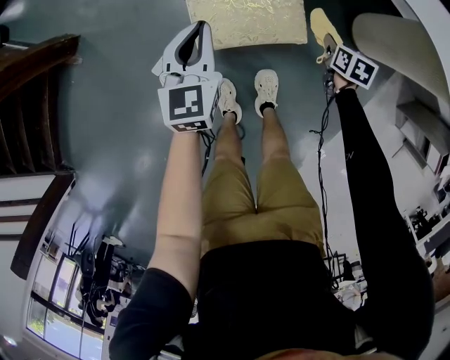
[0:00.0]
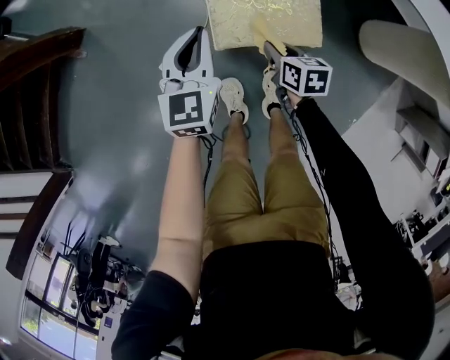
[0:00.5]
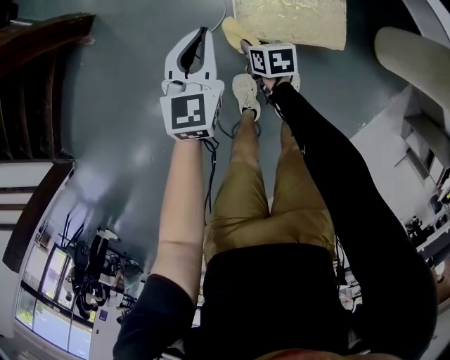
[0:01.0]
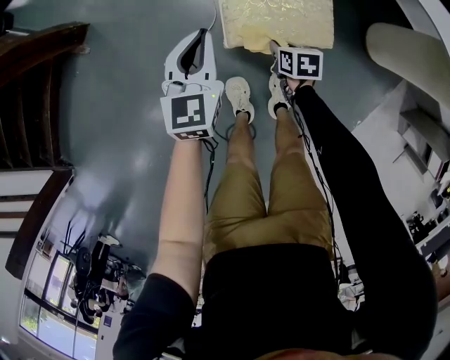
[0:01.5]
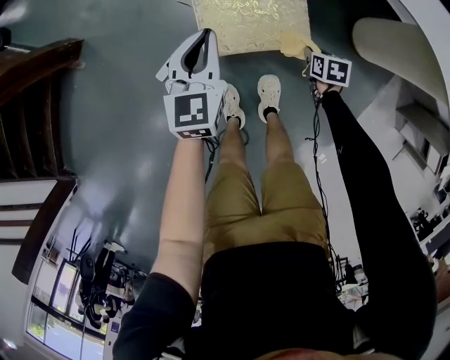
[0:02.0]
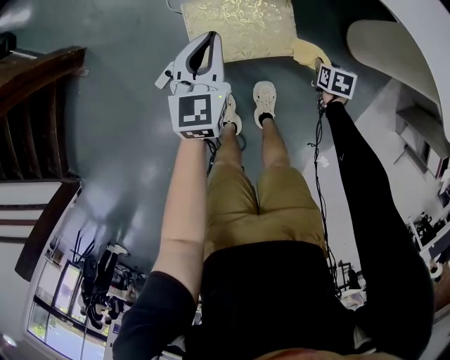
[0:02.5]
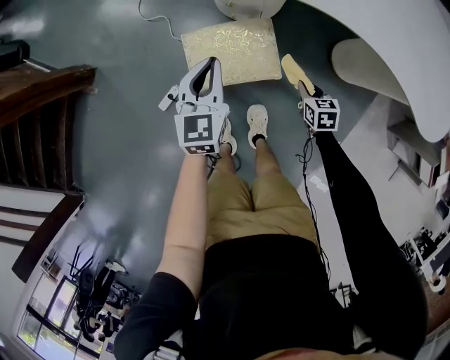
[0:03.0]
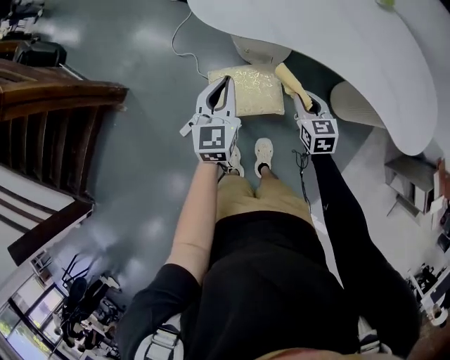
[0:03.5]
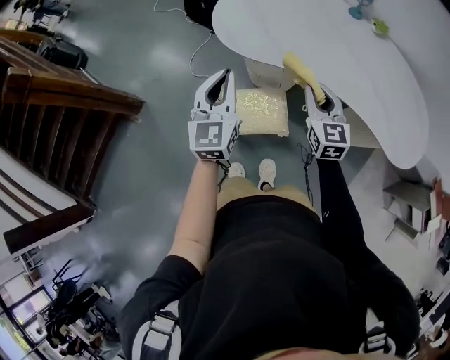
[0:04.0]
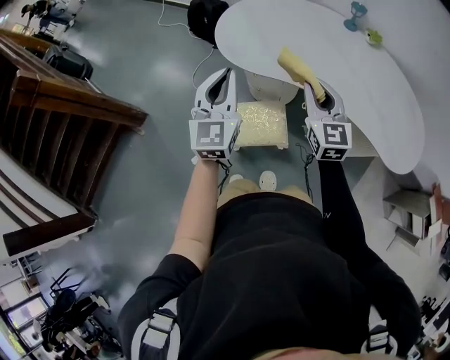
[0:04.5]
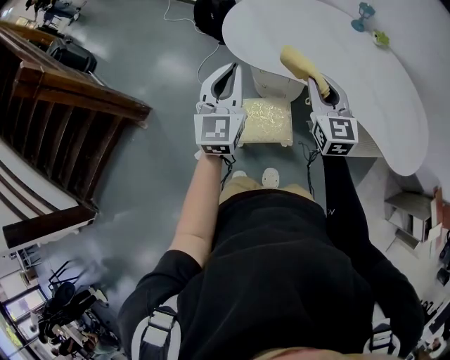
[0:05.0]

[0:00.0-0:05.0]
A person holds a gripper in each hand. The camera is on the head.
0:02.5 to 0:05.0: The right gripper goes approximately 60 cm upward, and angles its fingers upward, by some 60 degrees, while the left gripper moves upward, roughly 40 cm, and turns by approximately 30 degrees.

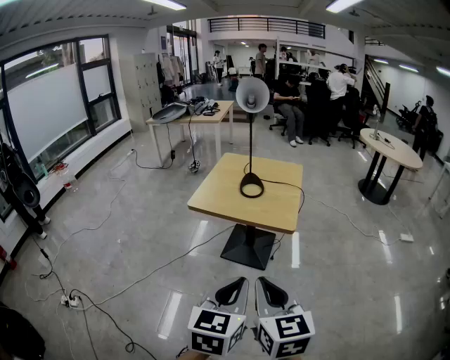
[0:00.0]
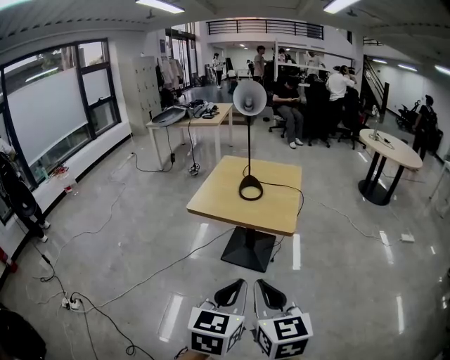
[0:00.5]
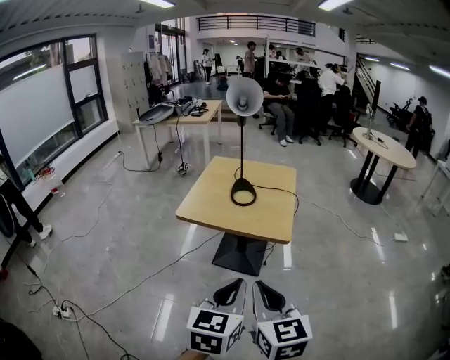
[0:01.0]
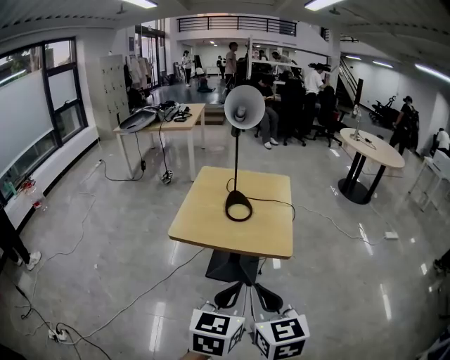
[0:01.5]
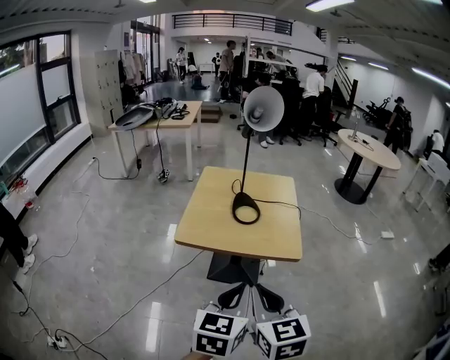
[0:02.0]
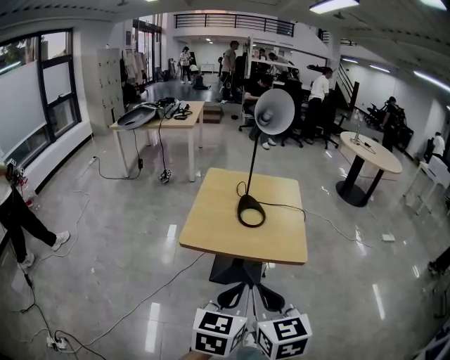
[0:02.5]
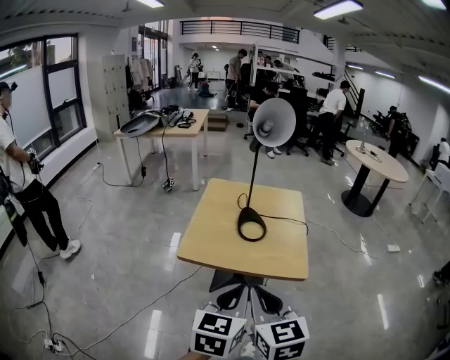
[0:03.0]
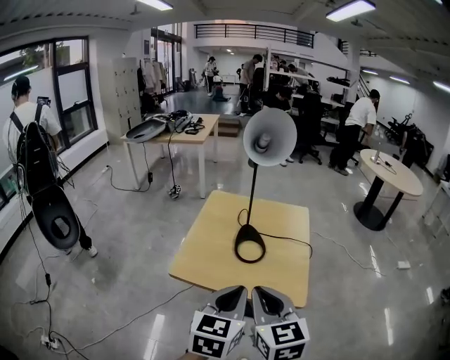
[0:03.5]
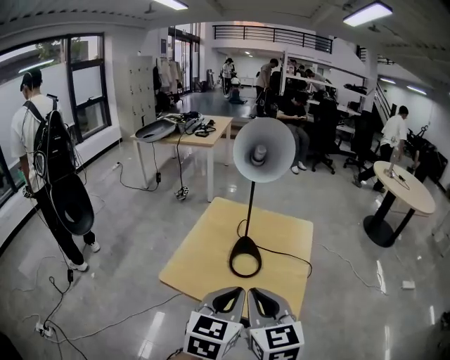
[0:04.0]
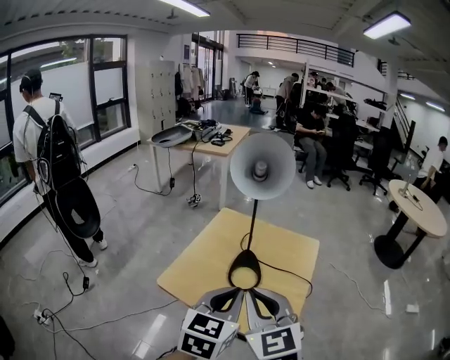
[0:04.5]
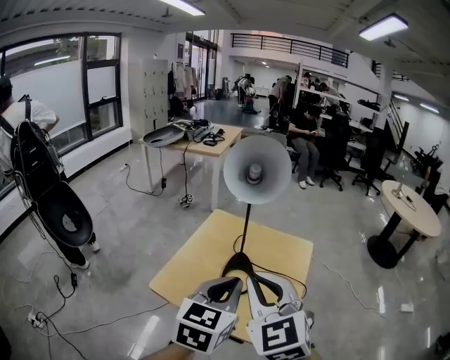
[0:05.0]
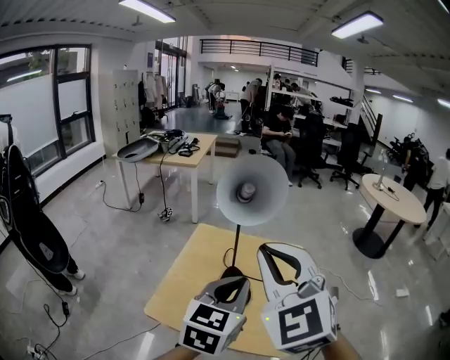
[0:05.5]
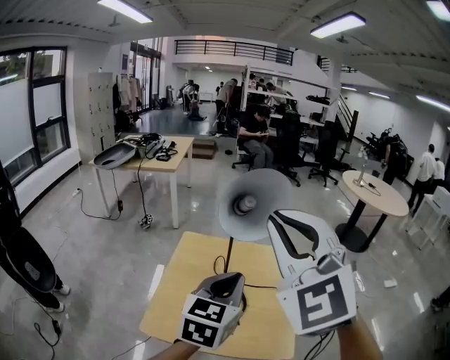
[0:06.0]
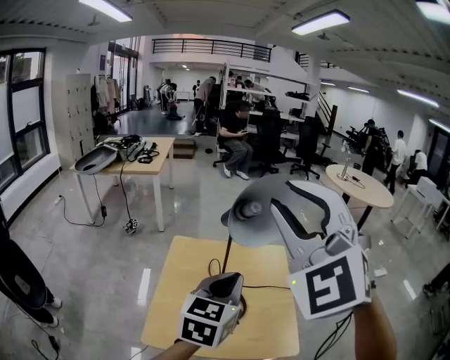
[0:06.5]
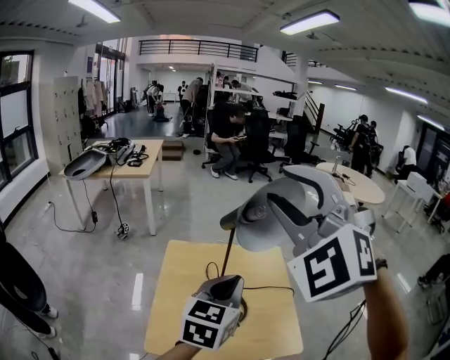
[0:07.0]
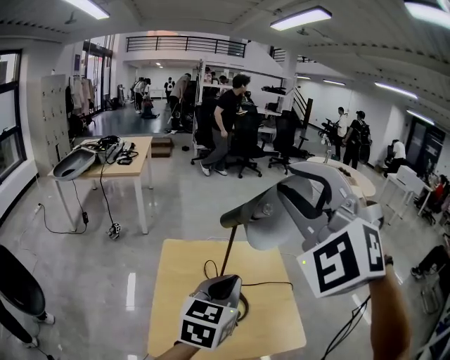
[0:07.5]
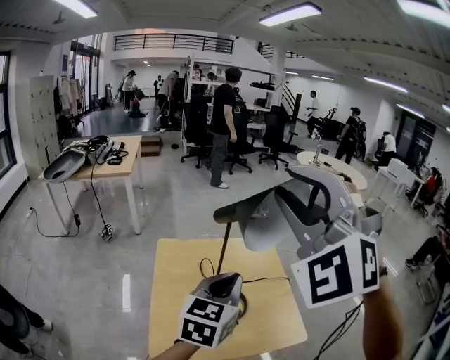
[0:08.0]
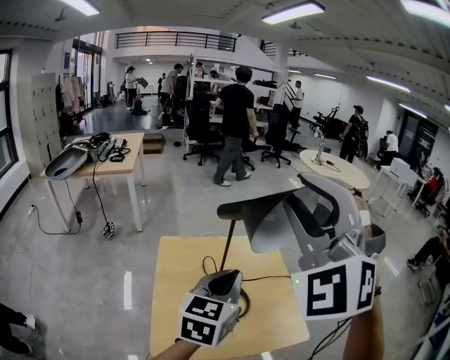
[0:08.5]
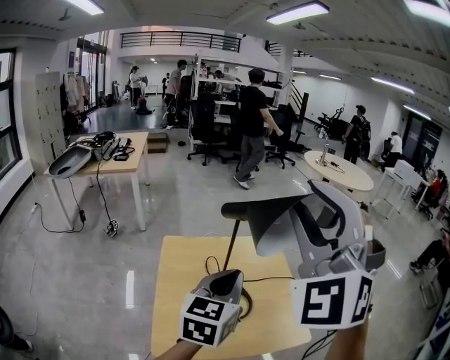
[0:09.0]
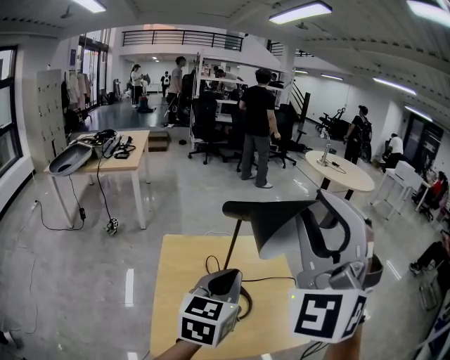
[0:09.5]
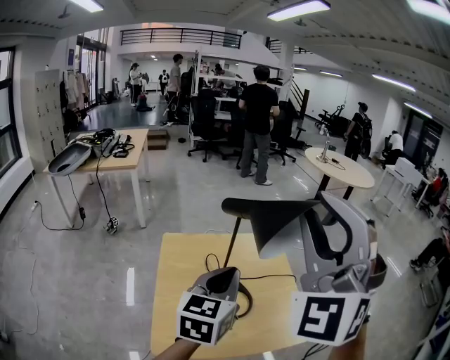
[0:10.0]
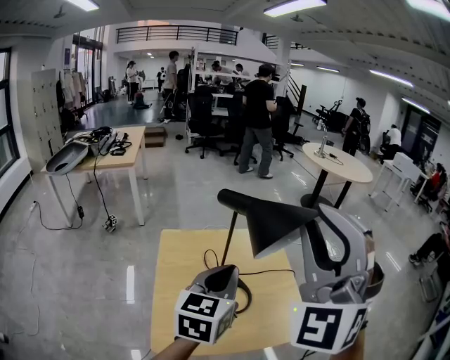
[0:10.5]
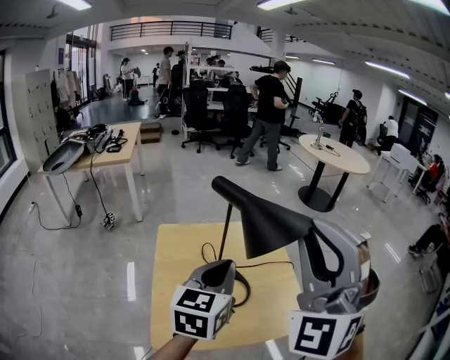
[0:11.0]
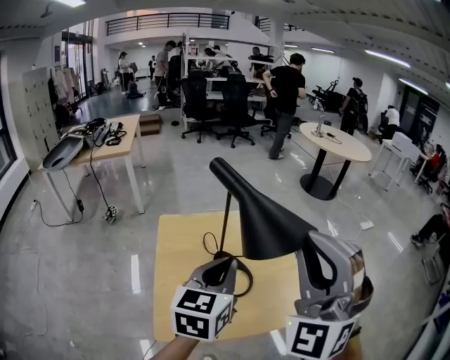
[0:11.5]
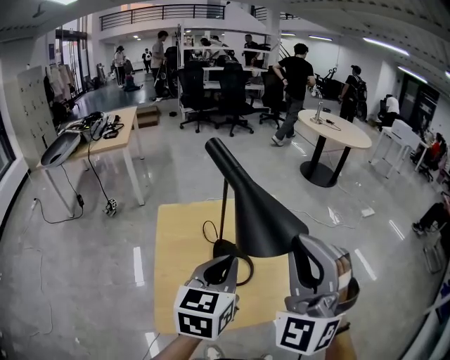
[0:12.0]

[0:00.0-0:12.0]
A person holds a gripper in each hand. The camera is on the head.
0:00.0 to 0:02.0: The two grippers travel together, forward and to the left, some 80 cm.
0:02.0 to 0:04.0: The two grippers travel together, forward and to the right, roughly 70 cm.
0:04.0 to 0:06.0: Both grippers are carried forward, some 40 cm. The right gripper is displaced upward by about 30 cm, and rotates around the line of its fingers by roughly 40 degrees, counterclockwise from behind.
0:06.0 to 0:08.0: Both grippers move to the left, approximately 35 cm. The right gripper changes its angle by approximately 40 degrees, and opens up.
0:08.0 to 0:10.0: The right gripper is displaced to the right by roughly 10 cm.
0:10.0 to 0:12.0: The left gripper shifts about 15 cm to the right and downward. The right gripper shifts roughly 25 cm downward and to the right.

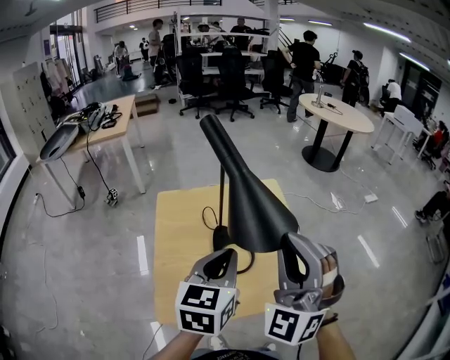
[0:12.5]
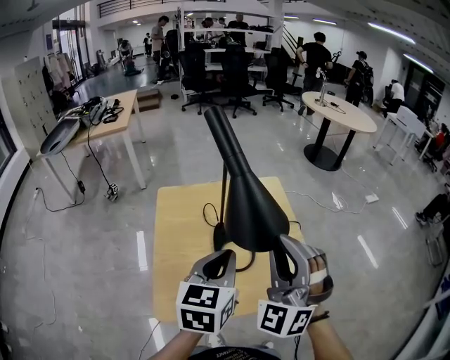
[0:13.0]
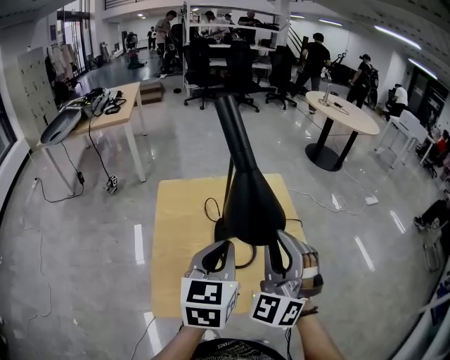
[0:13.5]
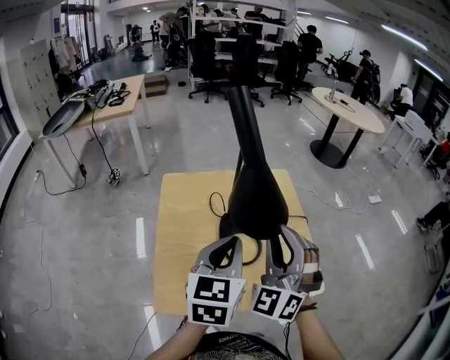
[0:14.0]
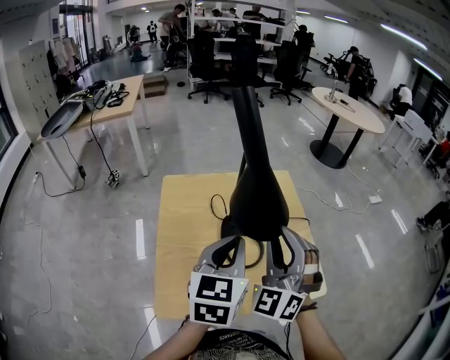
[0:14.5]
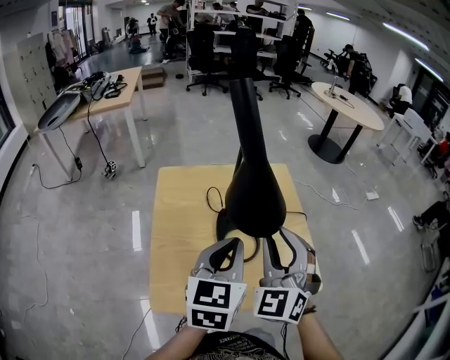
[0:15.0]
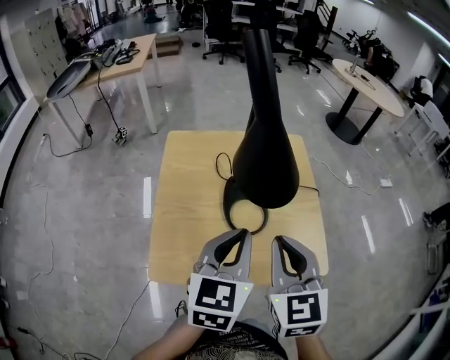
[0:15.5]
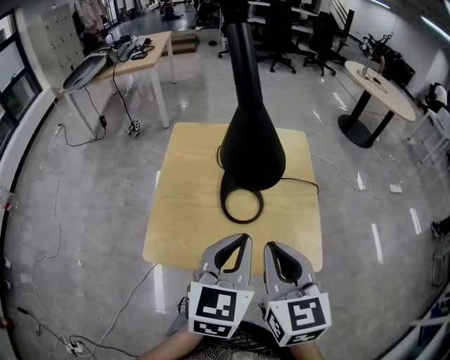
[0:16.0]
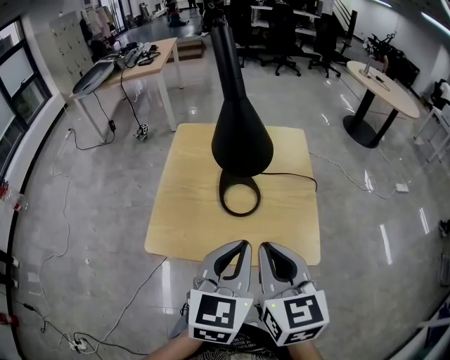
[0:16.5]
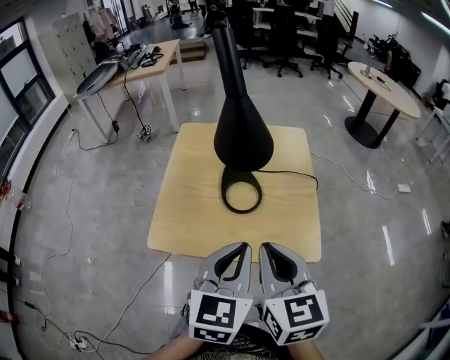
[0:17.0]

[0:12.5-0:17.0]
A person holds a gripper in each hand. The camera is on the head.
0:12.5 to 0:14.5: The left gripper goes roughly 15 cm forward, to the left and downward; the right gripper travels downward, forward and to the left by about 25 cm.
0:14.5 to 0:17.0: The two grippers travel together, to the right and backward, some 50 cm. The right gripper rotates around the line of its fingers by about 60 degrees, clockwise from behind, and closes its fingers.

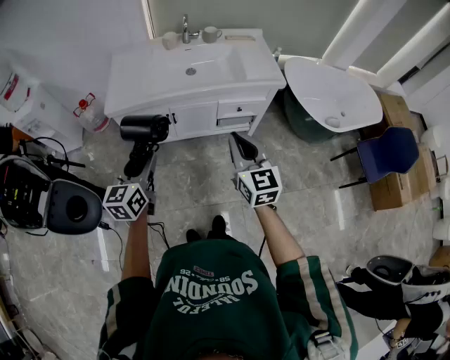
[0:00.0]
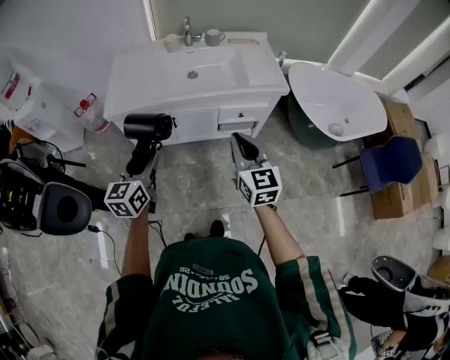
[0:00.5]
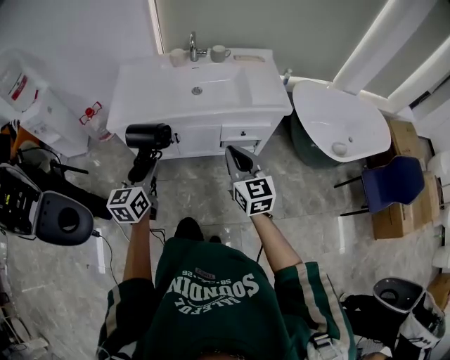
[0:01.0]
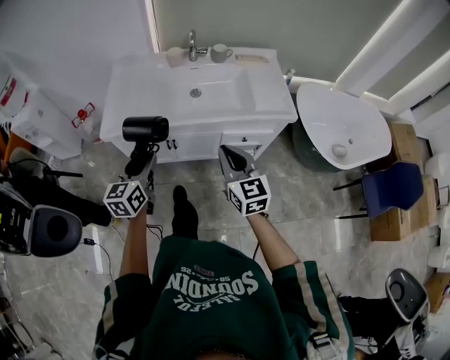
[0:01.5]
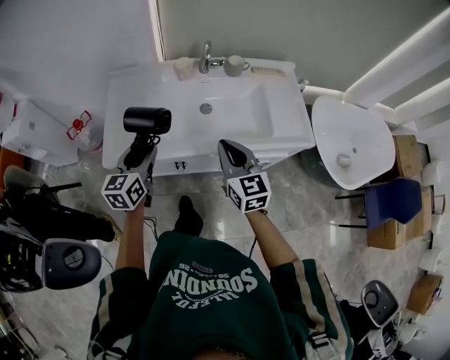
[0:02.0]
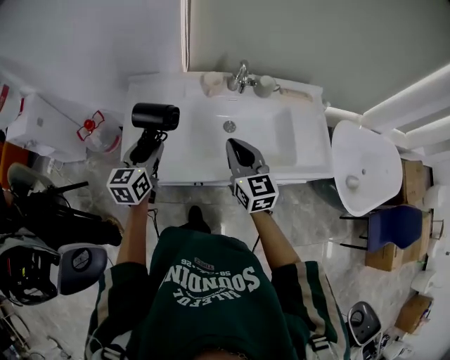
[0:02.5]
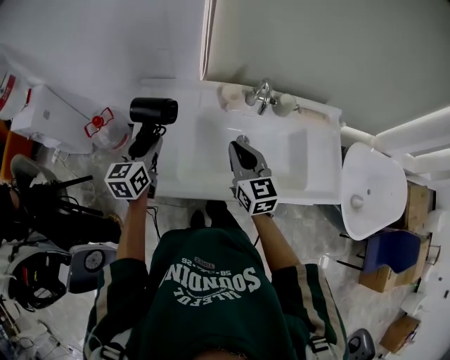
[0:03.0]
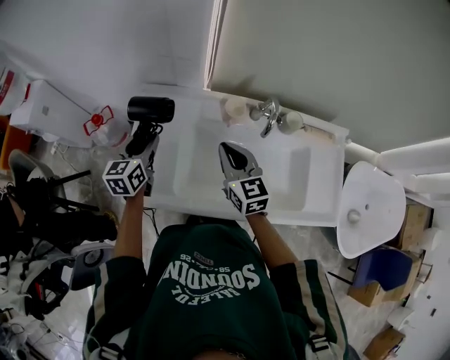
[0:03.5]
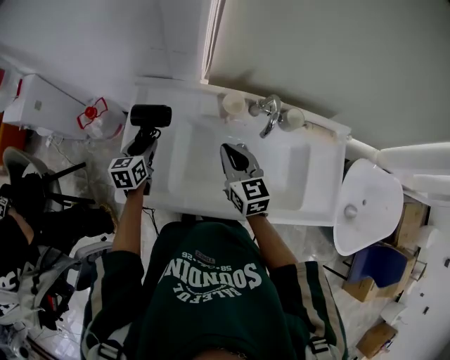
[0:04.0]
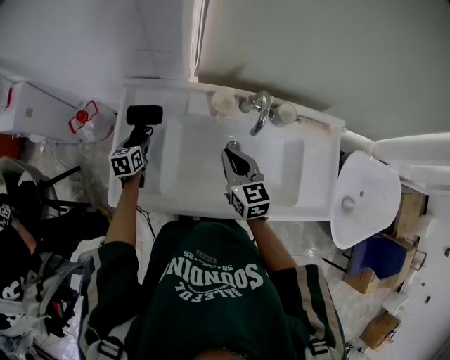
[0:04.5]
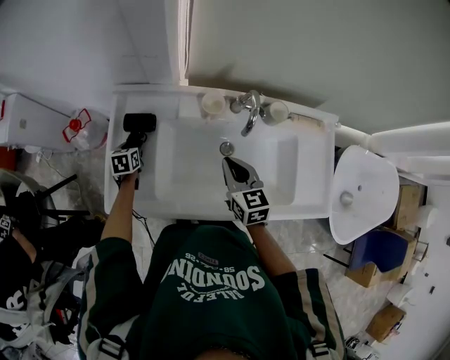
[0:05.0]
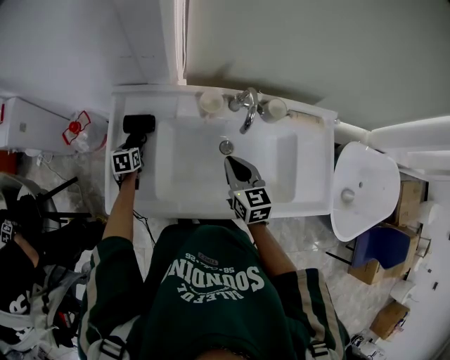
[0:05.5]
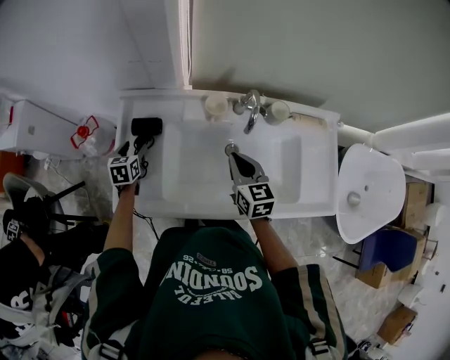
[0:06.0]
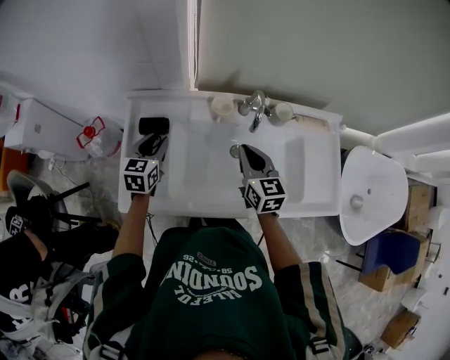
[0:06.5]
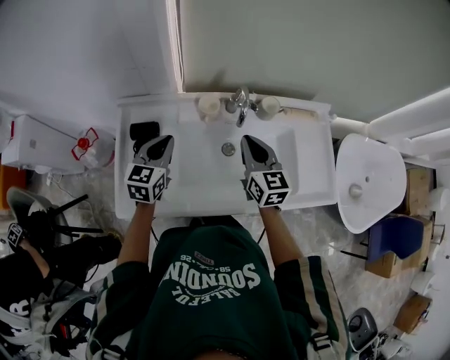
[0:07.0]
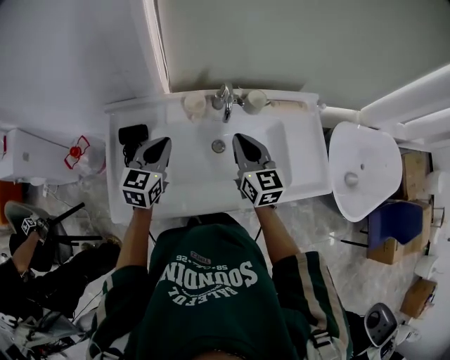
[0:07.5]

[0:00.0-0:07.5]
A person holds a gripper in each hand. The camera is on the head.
0:00.0 to 0:02.0: Both grippers move forward, approximately 35 cm.
0:02.0 to 0:04.0: The right gripper shifts some 30 cm forward. The left gripper heads forward, downward and to the left, covering some 35 cm, and rotates approximately 20 degrees.
0:04.0 to 0:05.5: The right gripper goes about 5 cm to the right; the left gripper is displaced downward by about 15 cm, and rotates some 20 degrees.
0:05.5 to 0:07.5: The left gripper moves upward and to the right, approximately 30 cm, tips its fingers upward by approximately 40 degrees, and closes up. Meanwhile the right gripper shifts roughly 10 cm upward and to the right.
